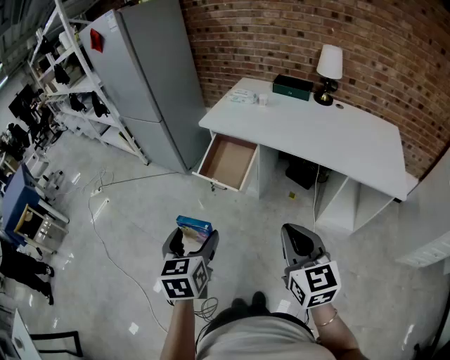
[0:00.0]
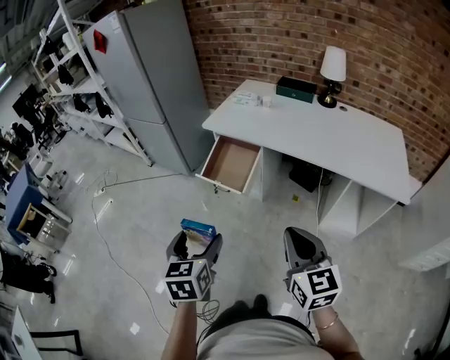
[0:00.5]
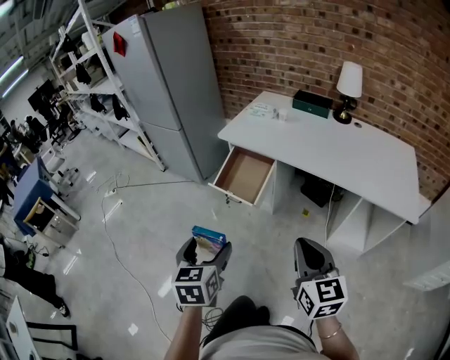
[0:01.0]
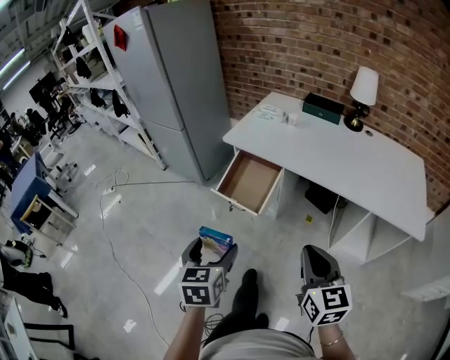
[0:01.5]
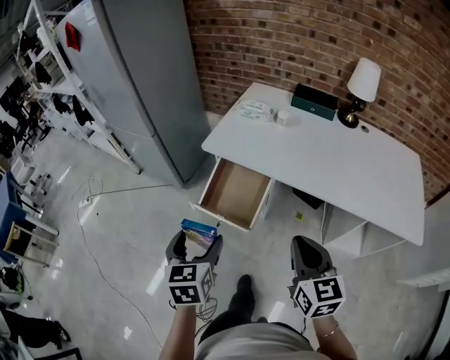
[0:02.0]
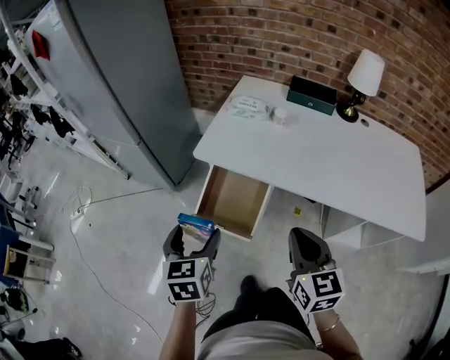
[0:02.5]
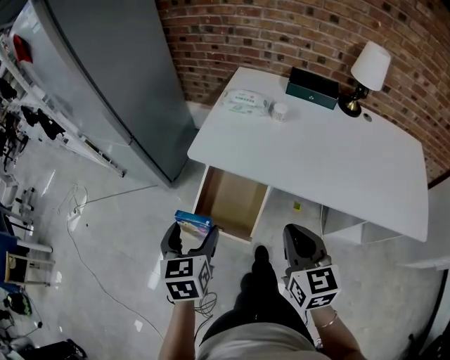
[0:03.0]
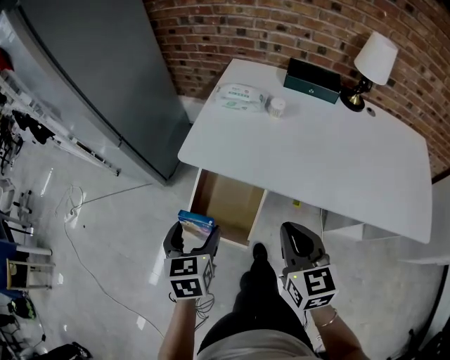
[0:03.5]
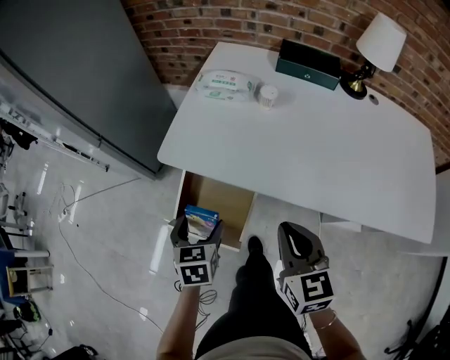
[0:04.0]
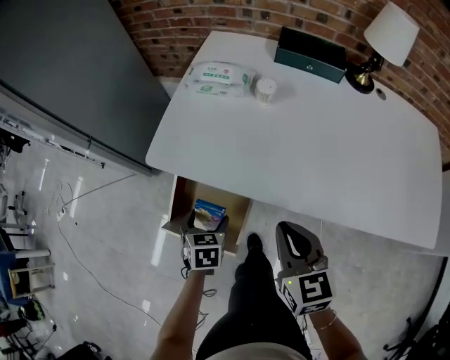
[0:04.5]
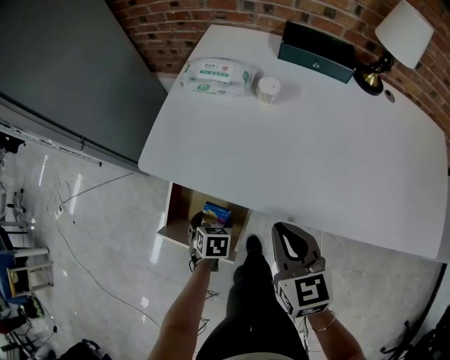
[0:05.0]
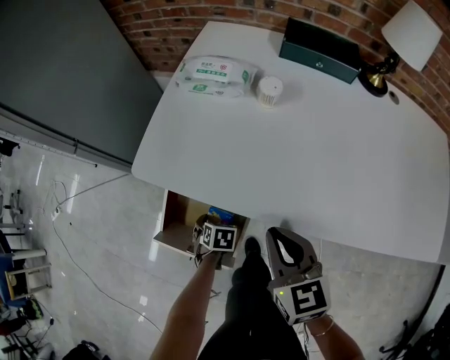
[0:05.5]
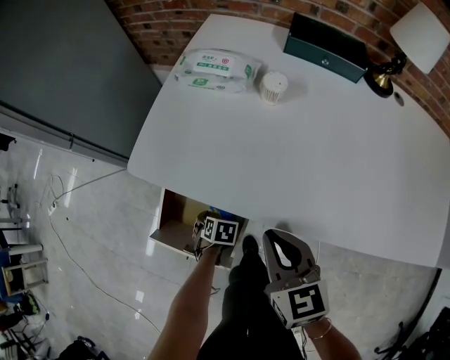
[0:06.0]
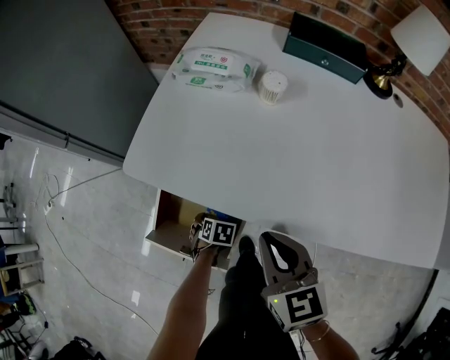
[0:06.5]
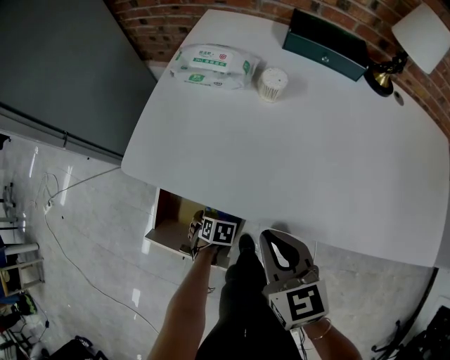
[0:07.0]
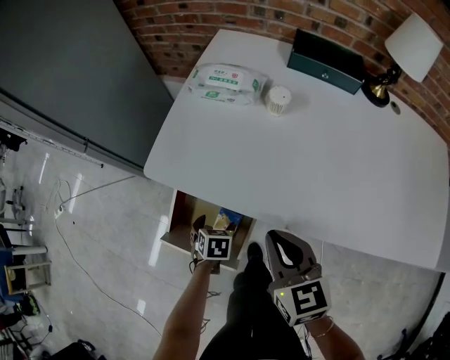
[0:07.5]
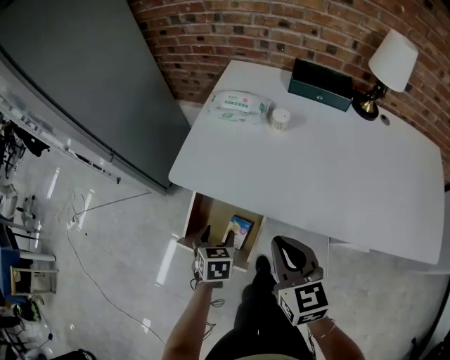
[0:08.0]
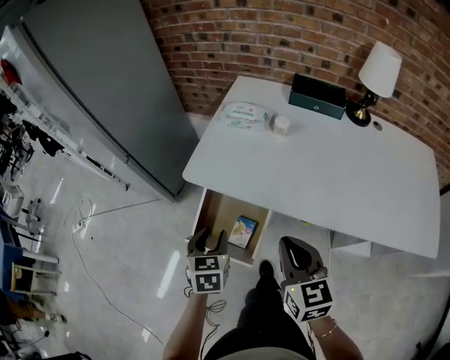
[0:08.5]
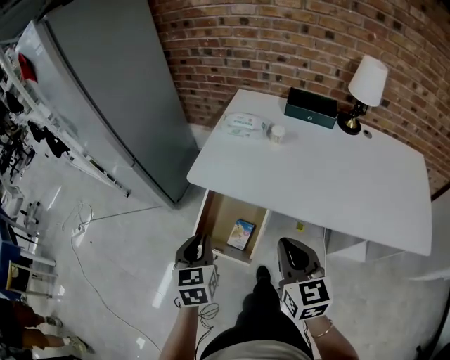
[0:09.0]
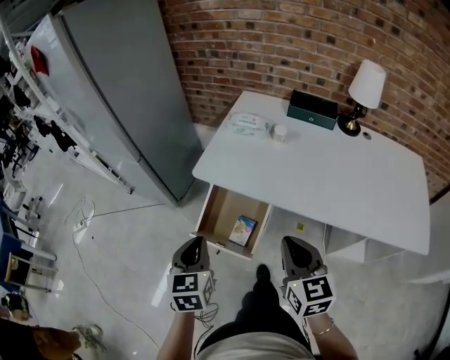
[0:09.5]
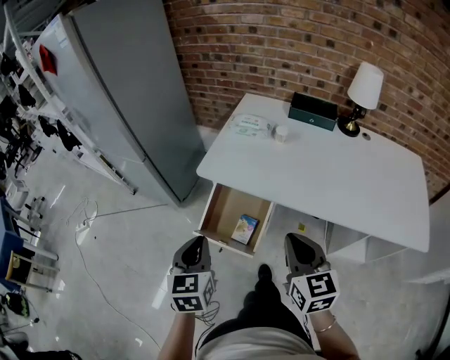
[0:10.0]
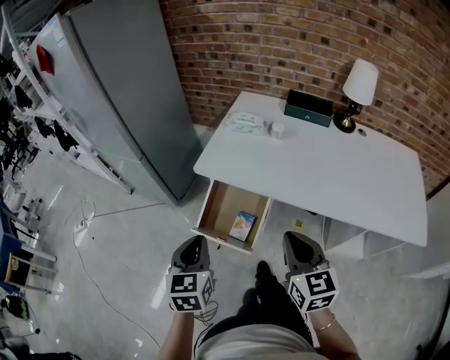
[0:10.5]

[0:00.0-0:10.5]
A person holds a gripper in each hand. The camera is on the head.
0:00.0 to 0:02.0: The grippers both shift forward by roughly 30 cm.
0:02.0 to 0:04.0: The grippers both shift forward and downward by about 30 cm.
0:04.0 to 0:06.5: The left gripper travels downward by approximately 30 cm, and angles its fingers downward, by roughly 30 degrees; the right gripper travels downward by roughly 10 cm.
0:06.5 to 0:08.5: The left gripper is displaced upward by about 35 cm, angles its fingers upward, by approximately 40 degrees, and closes up. Meanwhile the right gripper heads upward, covering some 15 cm.
0:08.5 to 0:10.5: The right gripper heads backward and upward, covering about 15 cm. Meanwhile the left gripper moves backward, upward and to the left, approximately 20 cm, and closes.

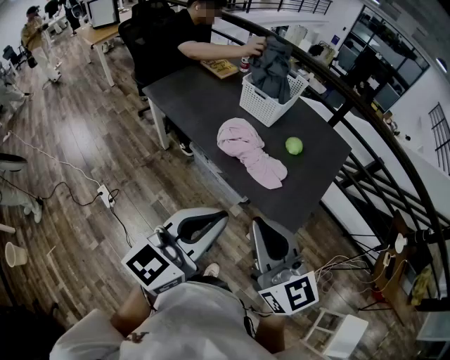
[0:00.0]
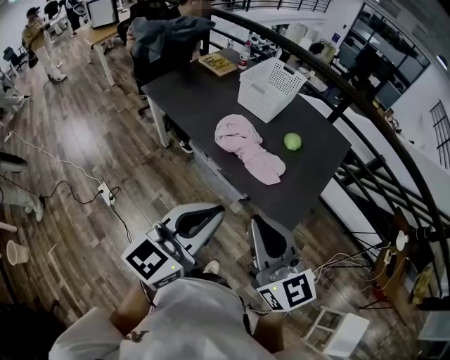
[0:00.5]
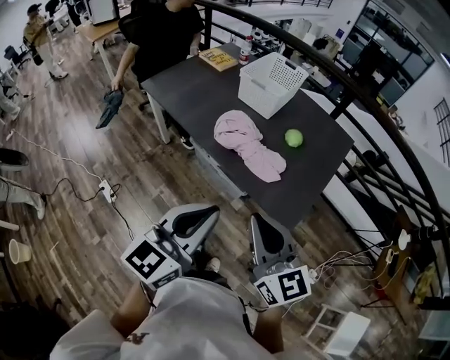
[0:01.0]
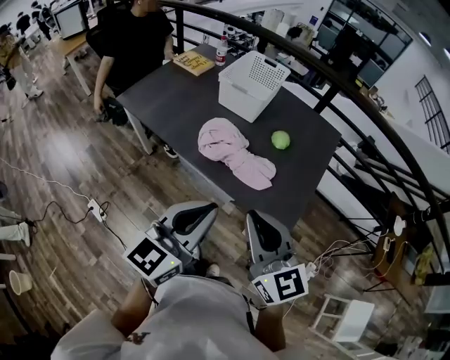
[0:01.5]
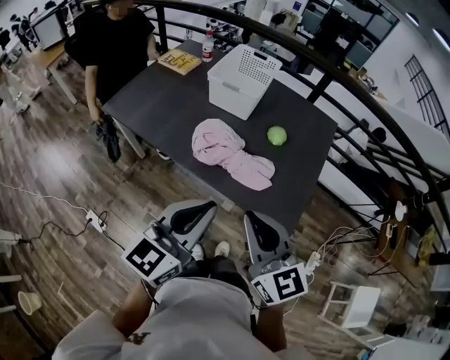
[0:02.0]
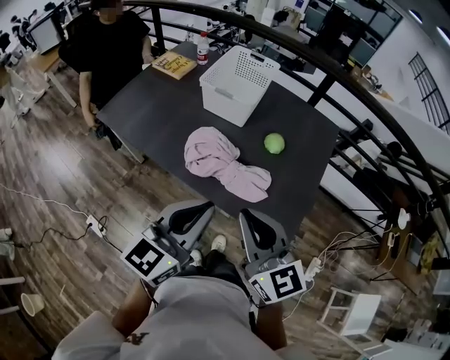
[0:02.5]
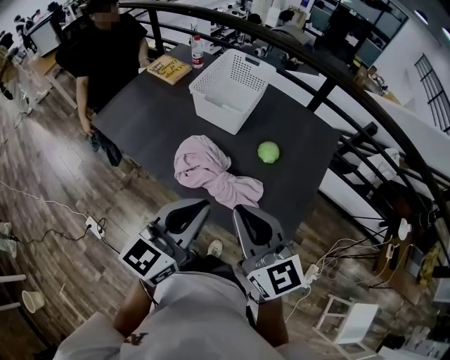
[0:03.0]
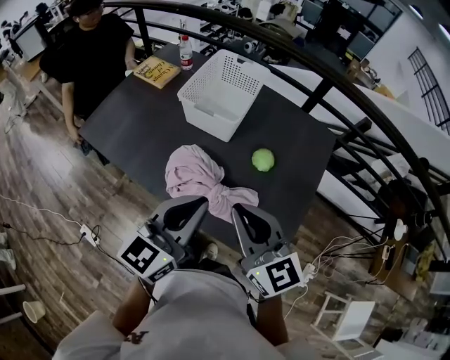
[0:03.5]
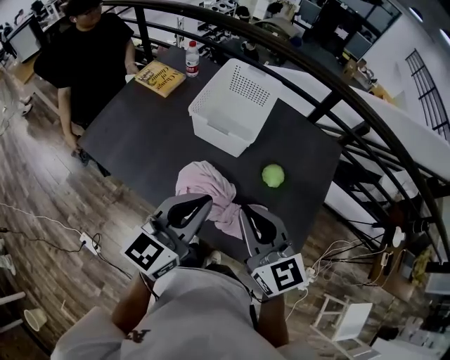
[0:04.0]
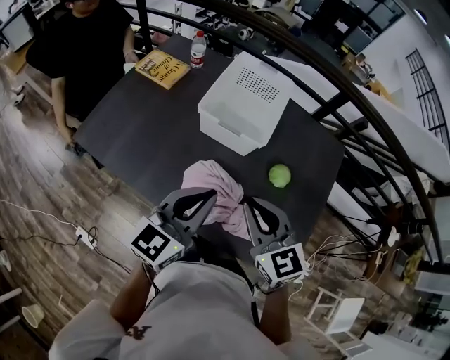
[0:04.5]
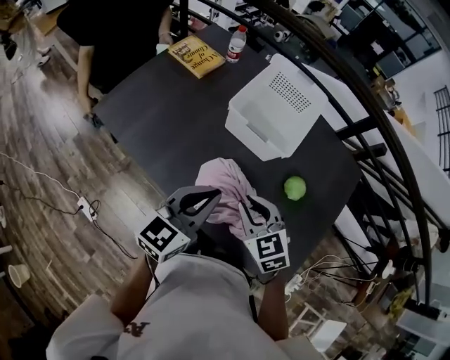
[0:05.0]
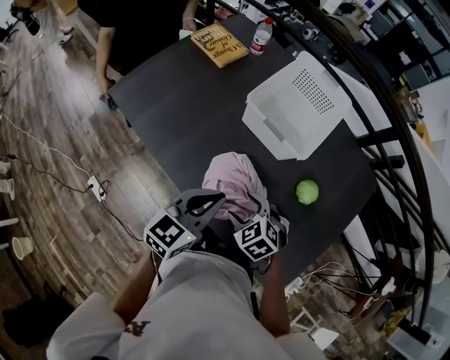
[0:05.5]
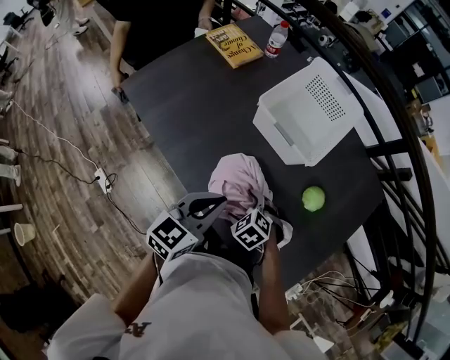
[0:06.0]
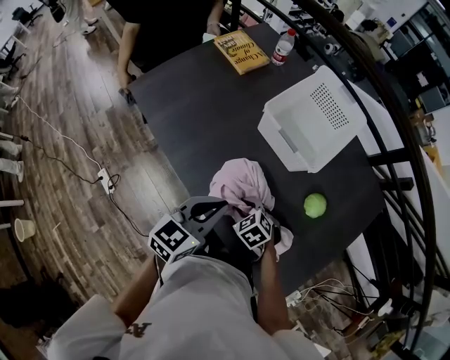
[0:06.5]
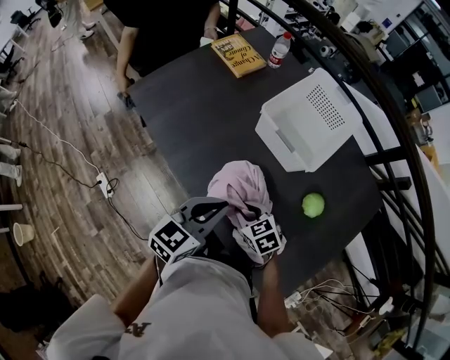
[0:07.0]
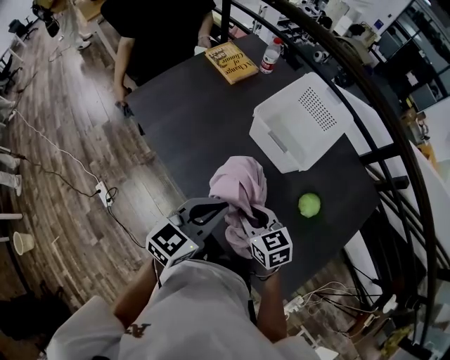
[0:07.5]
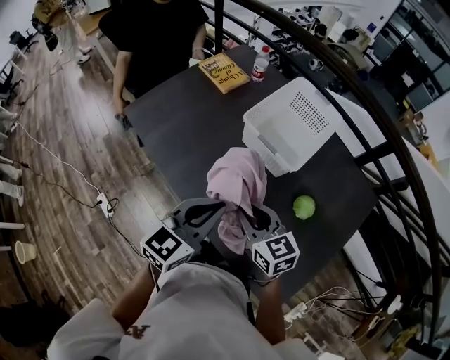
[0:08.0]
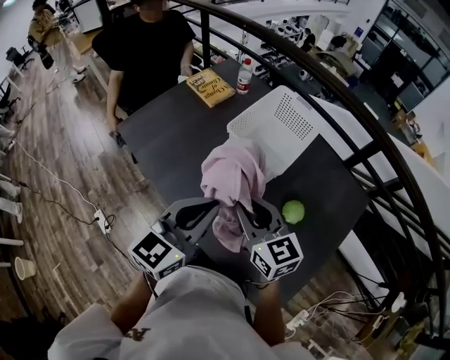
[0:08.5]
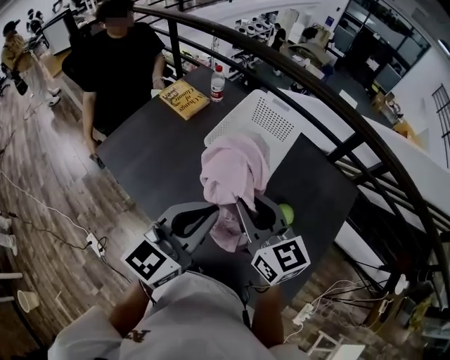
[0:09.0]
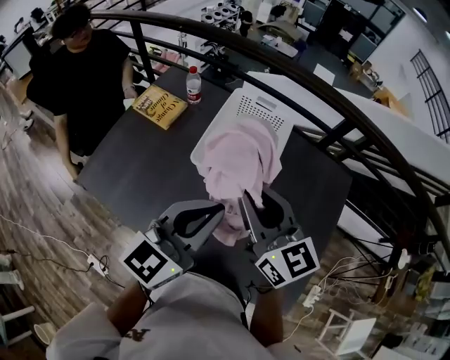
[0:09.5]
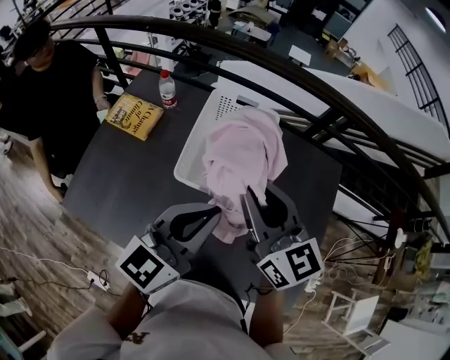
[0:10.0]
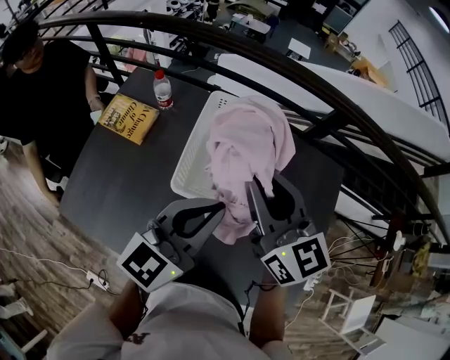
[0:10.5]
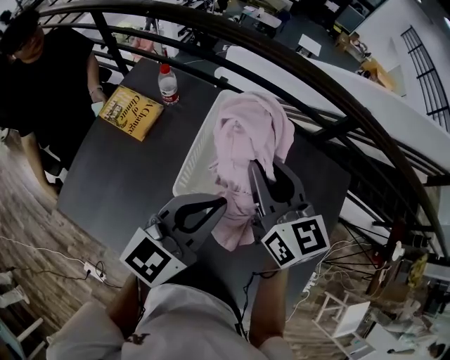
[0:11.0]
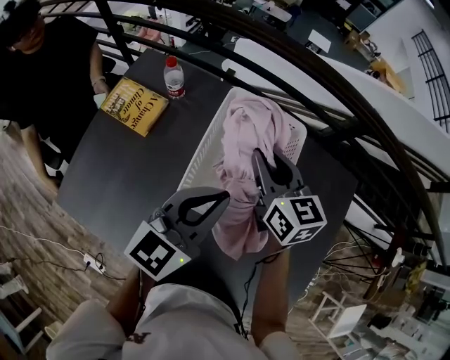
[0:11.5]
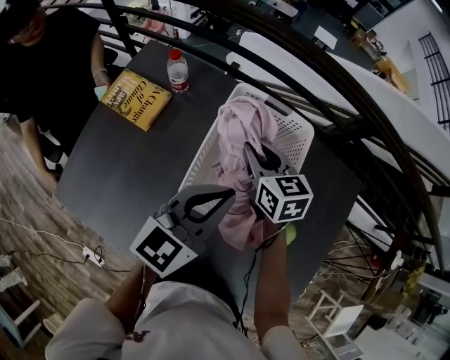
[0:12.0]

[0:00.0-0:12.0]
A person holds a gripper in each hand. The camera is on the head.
0:00.0 to 0:02.0: The left gripper shifts some 15 cm forward; the right gripper travels forward and downward by some 10 cm.
0:02.0 to 0:04.0: The grippers both shift forward by approximately 25 cm.
0:04.0 to 0:06.0: The right gripper goes roughly 30 cm downward, tilts its fingers approximately 60 degrees downward, and opens up. The left gripper travels downward by some 15 cm, and changes its angle by about 20 degrees.
0:06.0 to 0:08.0: The right gripper moves upward, approximately 20 cm, points its fingers roughly 40 degrees further upward, and closes its fingers; the left gripper goes about 10 cm upward.
0:08.0 to 0:10.0: The left gripper moves approximately 20 cm, and turns by approximately 30 degrees, while the right gripper changes place by about 25 cm, and changes its angle by roughly 40 degrees.
0:10.0 to 0:12.0: The left gripper heads forward and downward, covering some 15 cm; the right gripper is displaced downward and forward by approximately 30 cm, and changes its angle by roughly 30 degrees.

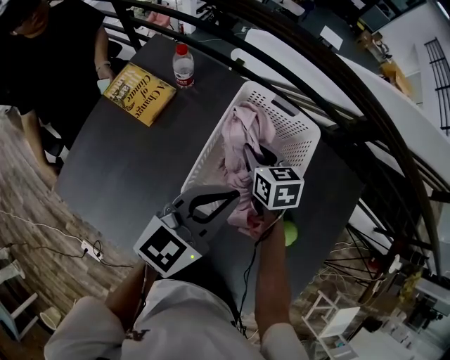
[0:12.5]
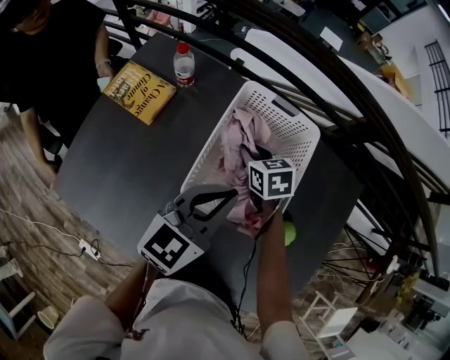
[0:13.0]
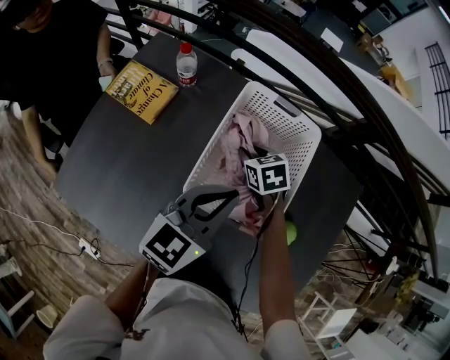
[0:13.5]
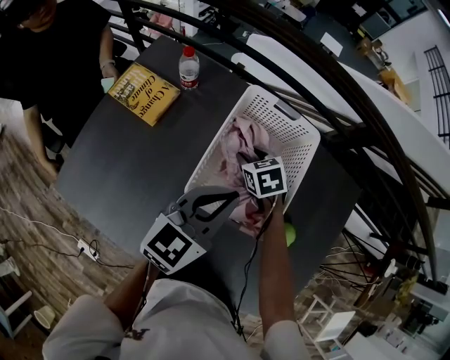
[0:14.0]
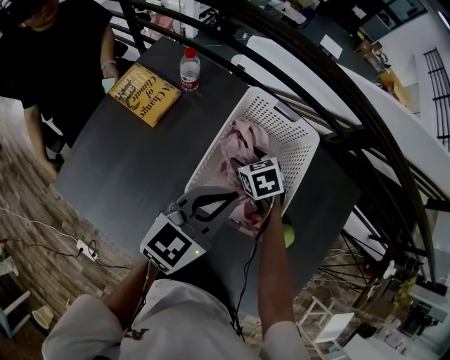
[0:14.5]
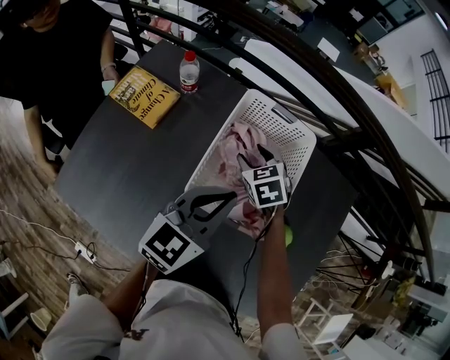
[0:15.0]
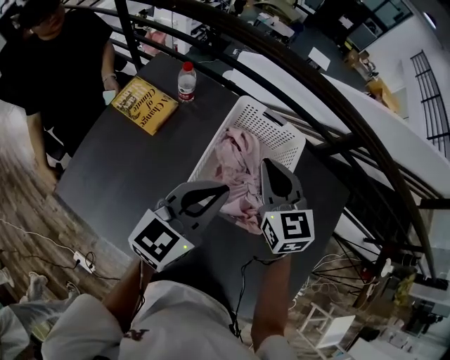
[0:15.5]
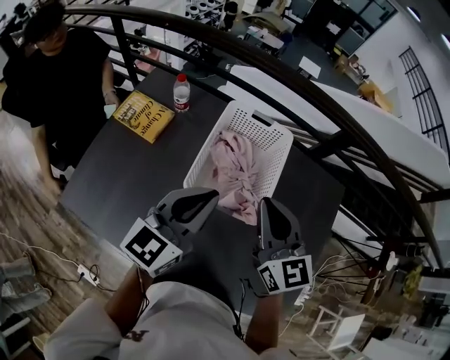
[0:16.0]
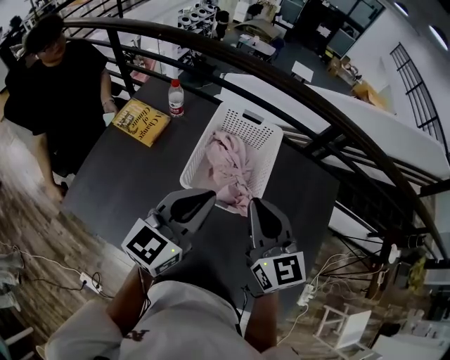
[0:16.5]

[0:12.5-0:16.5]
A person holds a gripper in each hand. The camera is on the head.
0:12.5 to 0:14.5: The right gripper moves downward, some 5 cm, changes its angle by about 20 degrees, and opens up.
0:14.5 to 0:16.5: The right gripper moves upward and backward, approximately 35 cm, tilts its fingers approximately 50 degrees upward, and closes its fingers. Meanwhile the left gripper is displaced upward and backward by roughly 15 cm.
